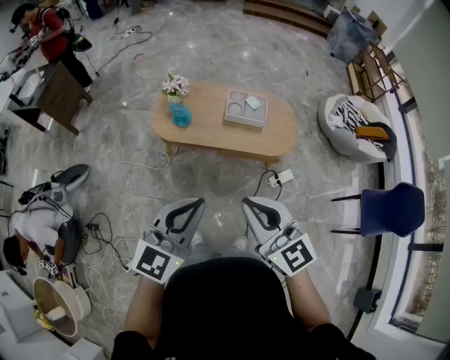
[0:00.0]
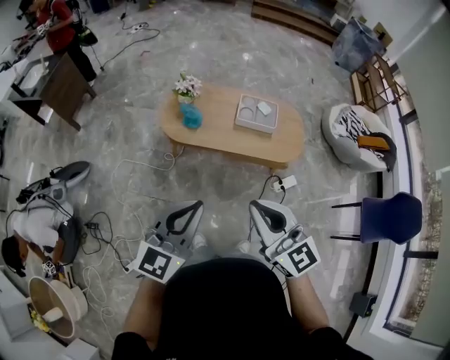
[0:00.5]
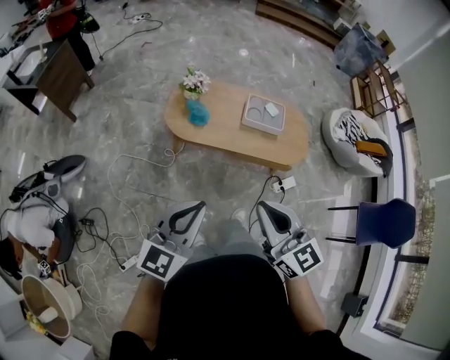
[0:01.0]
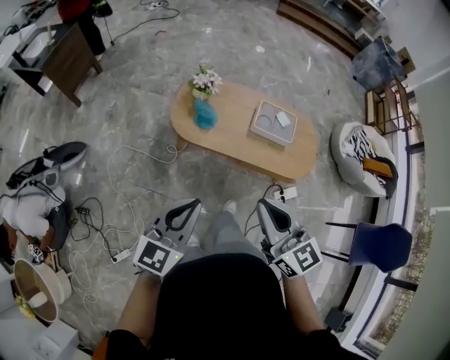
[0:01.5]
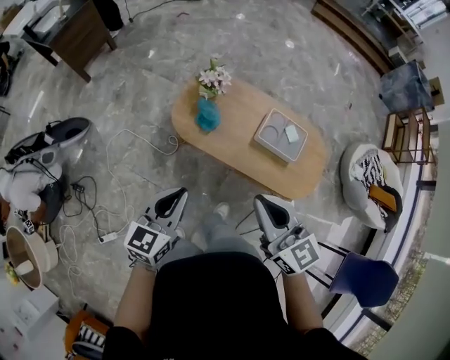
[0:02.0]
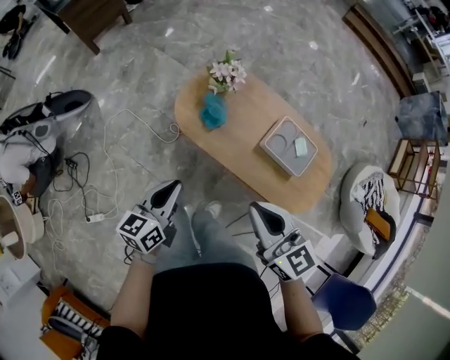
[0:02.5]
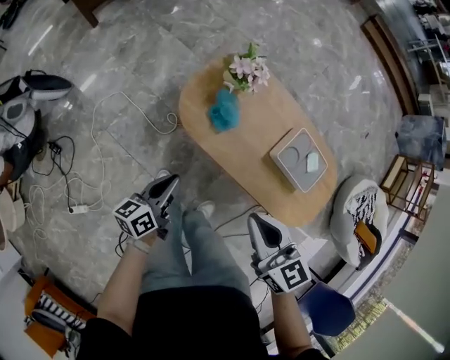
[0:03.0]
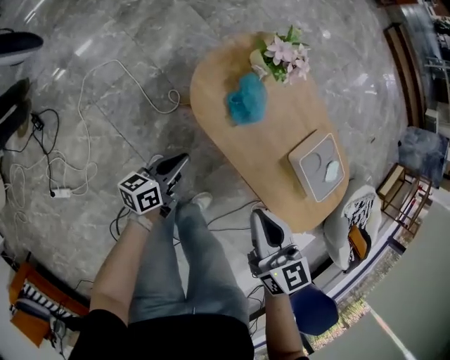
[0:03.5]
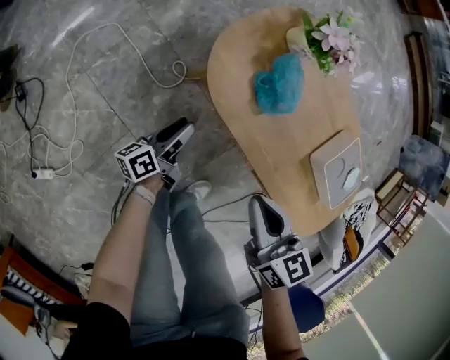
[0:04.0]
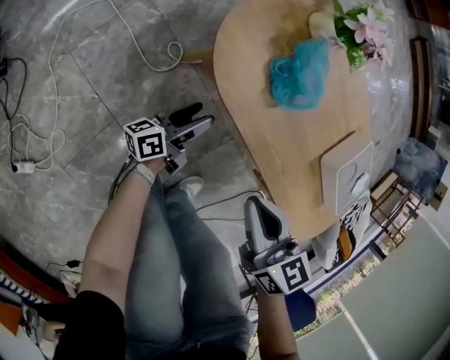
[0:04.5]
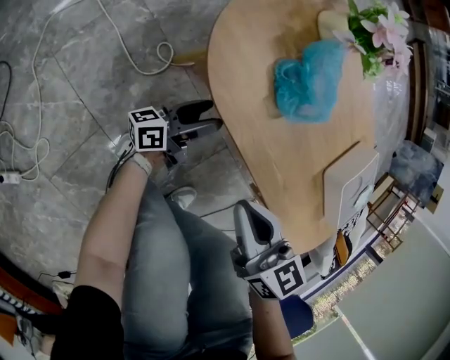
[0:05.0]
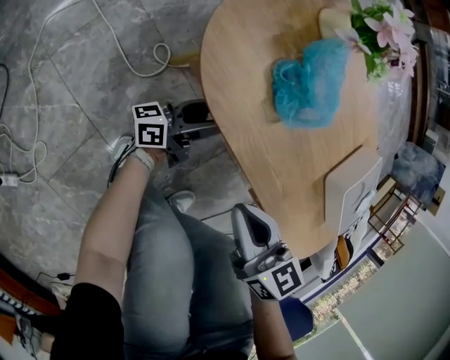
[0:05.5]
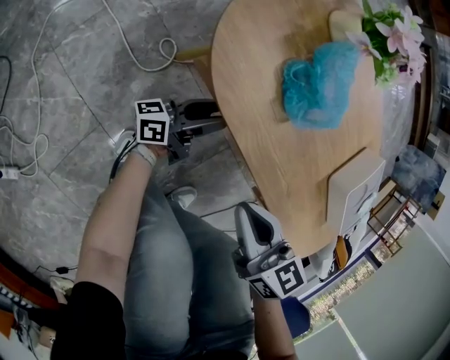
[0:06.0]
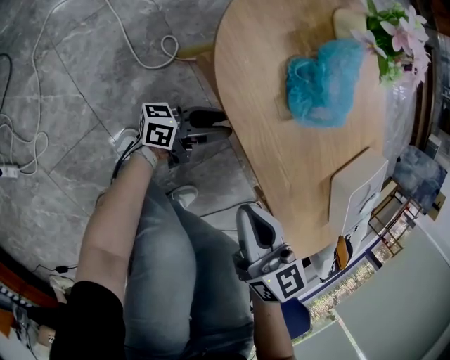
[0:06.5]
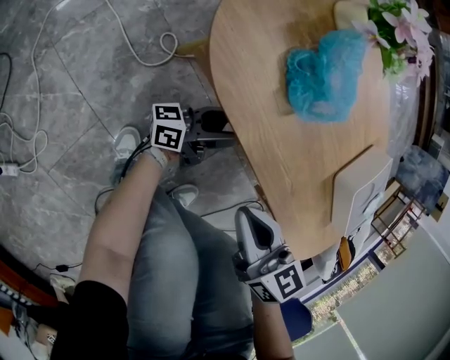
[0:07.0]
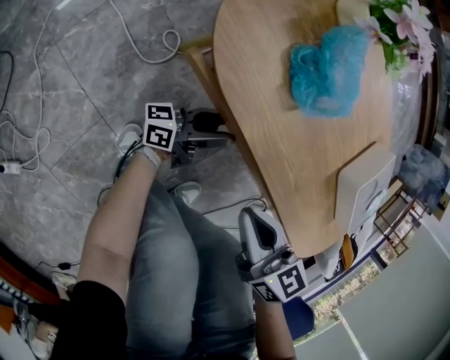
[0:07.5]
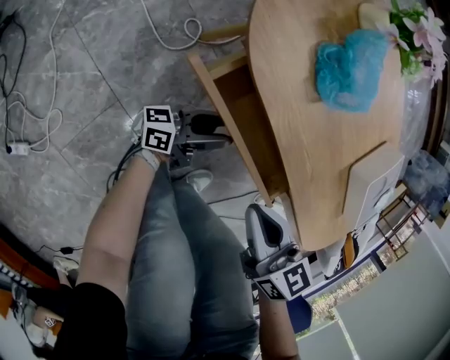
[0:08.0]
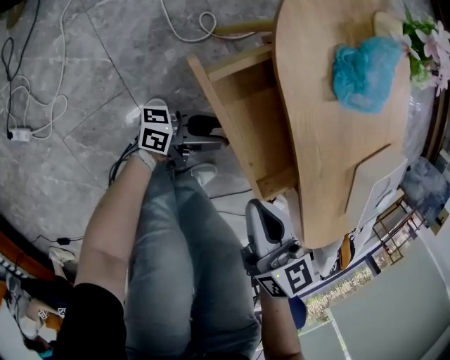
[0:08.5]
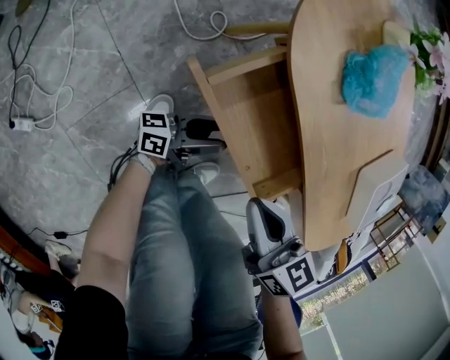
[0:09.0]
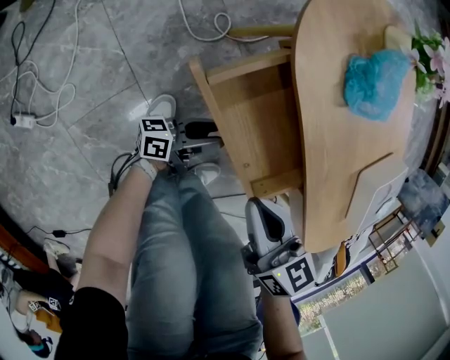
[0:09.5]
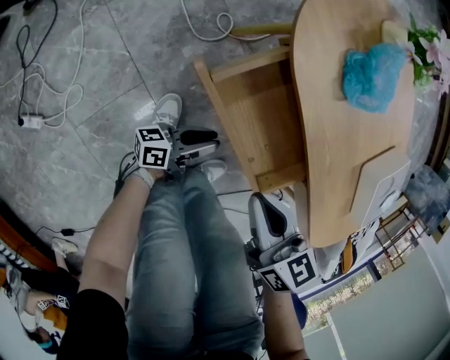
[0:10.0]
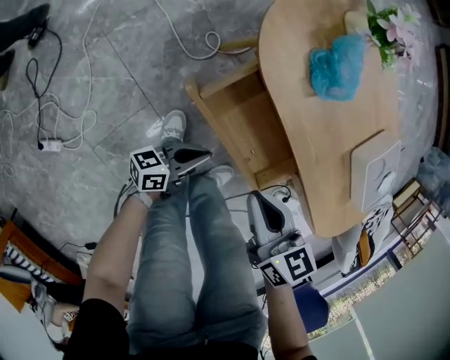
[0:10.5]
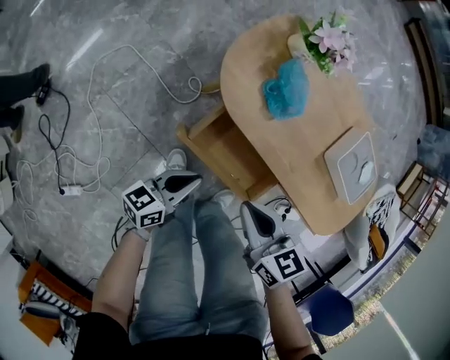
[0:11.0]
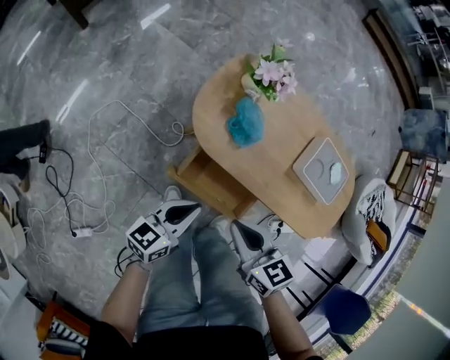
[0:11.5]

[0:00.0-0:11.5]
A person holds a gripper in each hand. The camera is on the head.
0:00.0 to 0:02.0: The right gripper goes some 30 cm forward. The left gripper is displaced forward, downward and to the left by approximately 35 cm, and swivels roughly 30 degrees.
0:02.0 to 0:04.0: The grippers both shift downward by about 50 cm. The left gripper twists some 60 degrees counterclockwise, seen from behind, and opens its fingers. The right gripper turns by about 30 degrees.
0:04.0 to 0:06.0: The left gripper goes roughly 15 cm downward and to the right, and turns by roughly 30 degrees; the right gripper shifts roughly 15 cm downward.
0:06.0 to 0:07.5: The left gripper moves some 5 cm.
0:07.5 to 0:09.5: The right gripper is displaced to the left and backward by roughly 10 cm; the left gripper shifts some 15 cm backward and to the left.
0:09.5 to 0:11.5: The left gripper moves upward, roughly 40 cm, swivels roughly 50 degrees, and closes. Meanwhile the right gripper moves upward, some 25 cm.

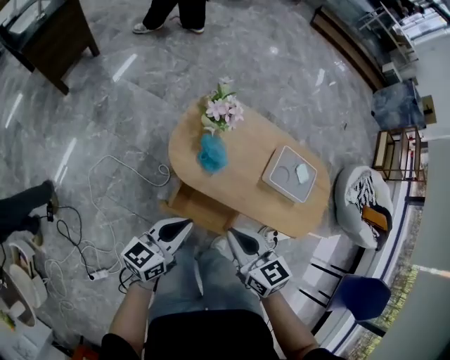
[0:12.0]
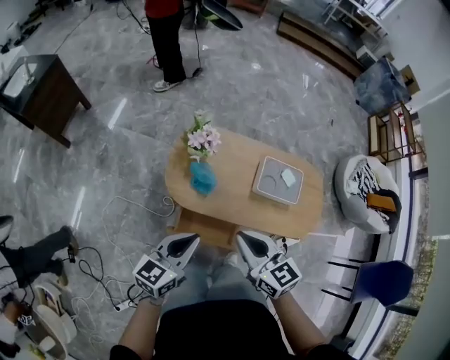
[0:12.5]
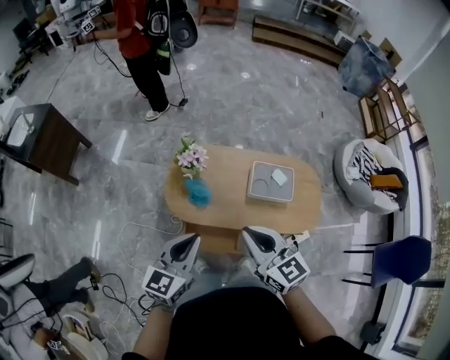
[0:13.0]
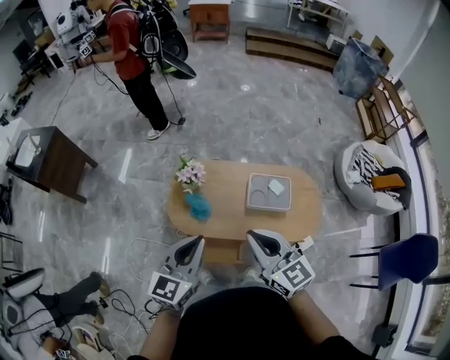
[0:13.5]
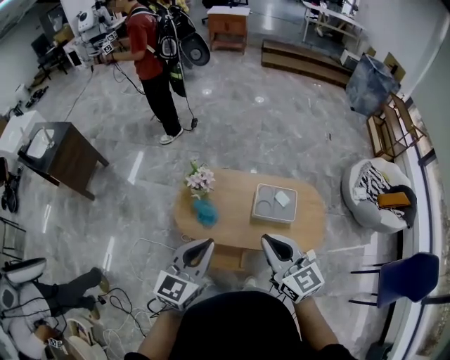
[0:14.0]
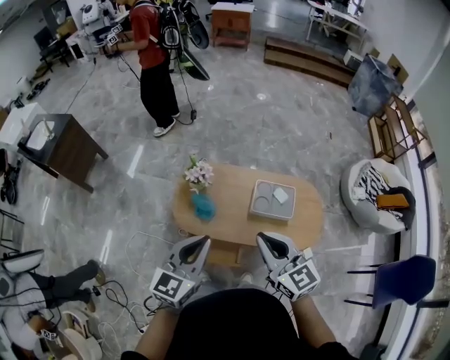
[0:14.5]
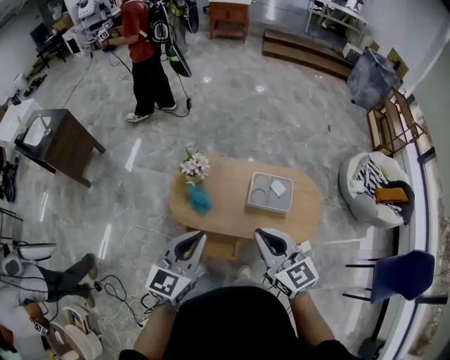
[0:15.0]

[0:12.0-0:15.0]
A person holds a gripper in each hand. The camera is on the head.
0:12.0 to 0:13.5: The grippers both shift upward and to the right by approximately 30 cm. The right gripper rotates roughly 30 degrees; the left gripper changes its angle by about 30 degrees.
0:13.5 to 0:15.0: The grippers stay close to where they were, moving slightly.

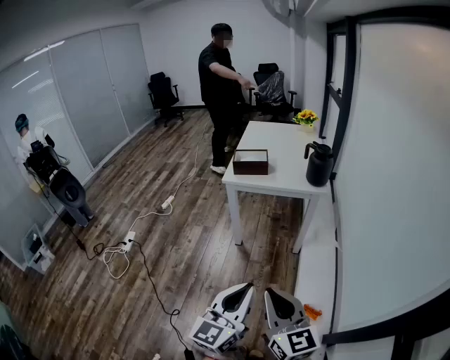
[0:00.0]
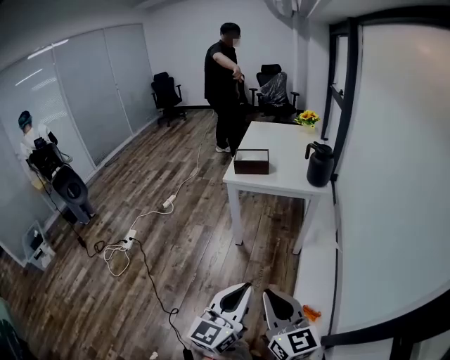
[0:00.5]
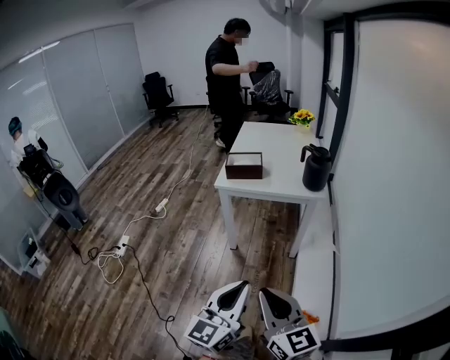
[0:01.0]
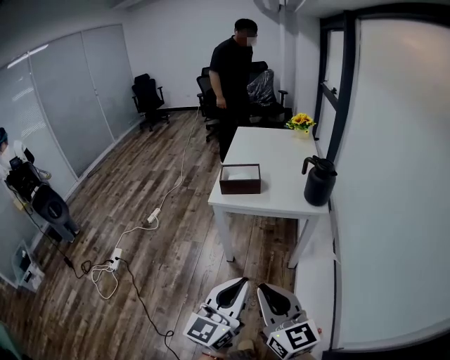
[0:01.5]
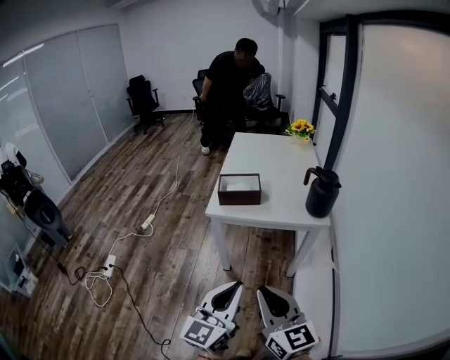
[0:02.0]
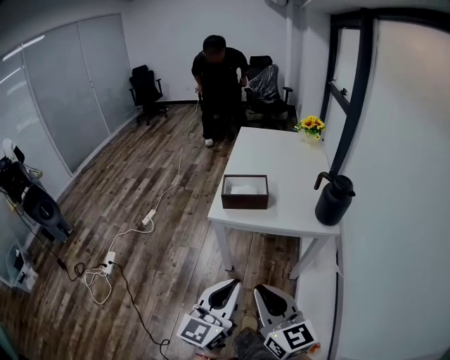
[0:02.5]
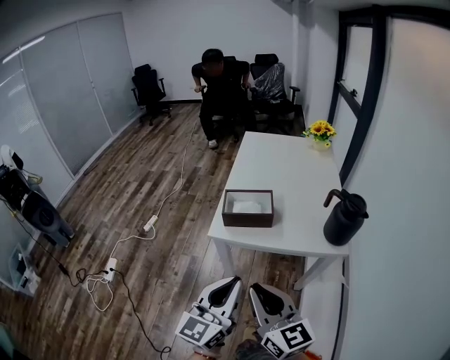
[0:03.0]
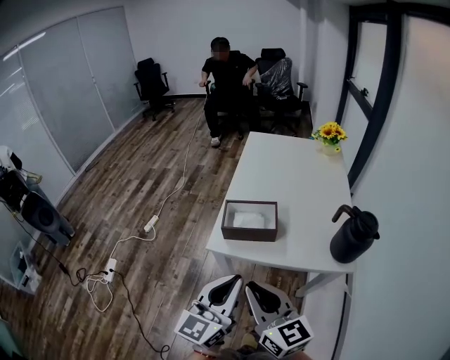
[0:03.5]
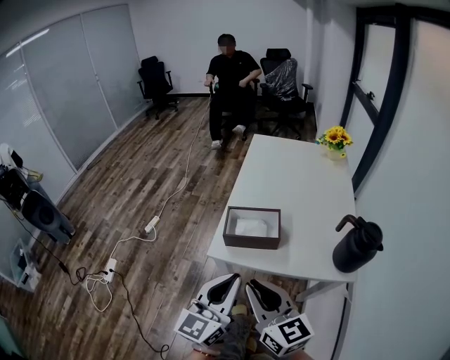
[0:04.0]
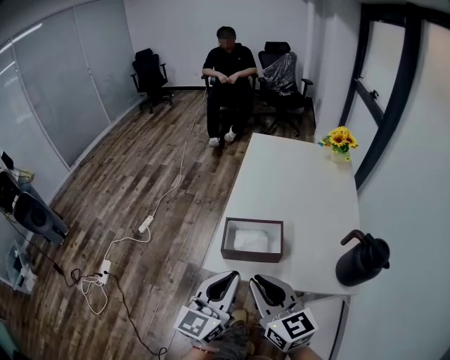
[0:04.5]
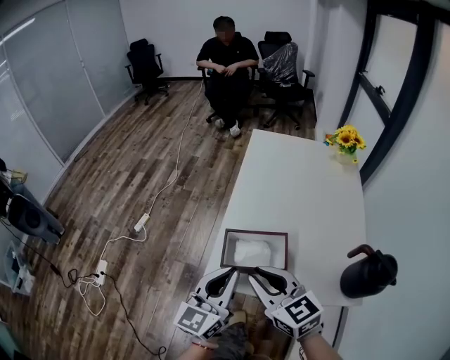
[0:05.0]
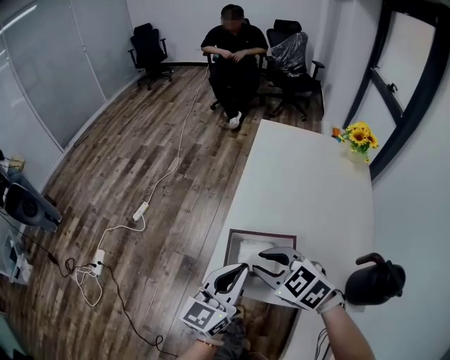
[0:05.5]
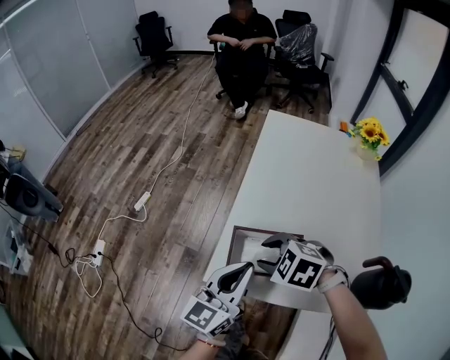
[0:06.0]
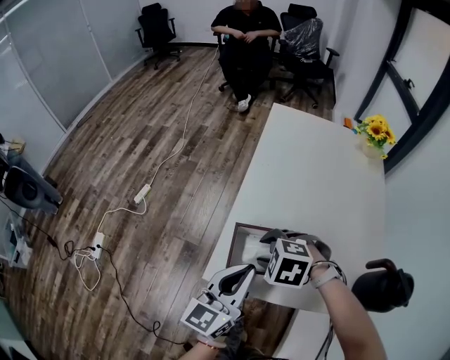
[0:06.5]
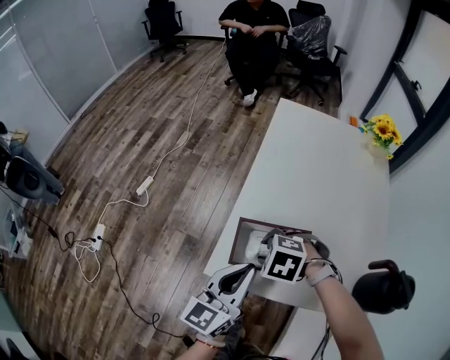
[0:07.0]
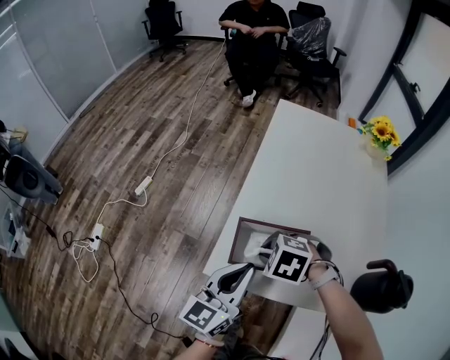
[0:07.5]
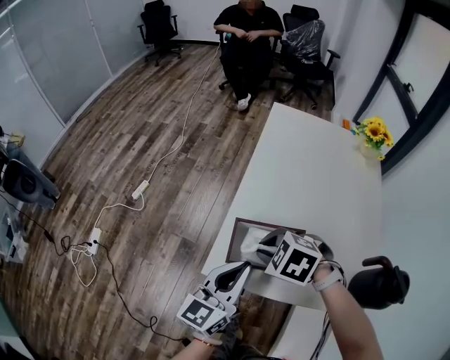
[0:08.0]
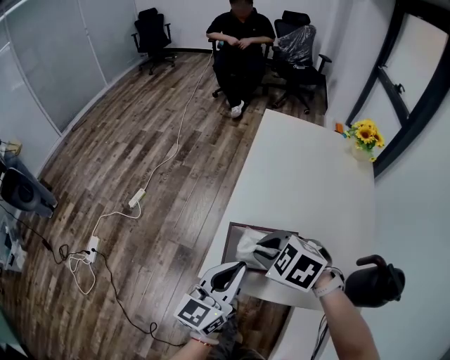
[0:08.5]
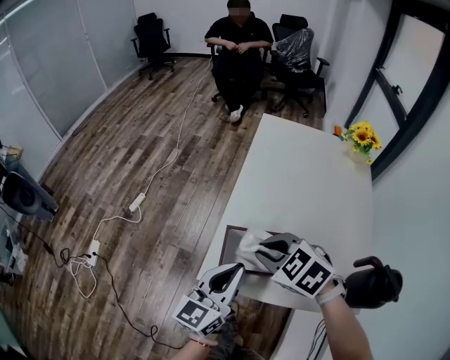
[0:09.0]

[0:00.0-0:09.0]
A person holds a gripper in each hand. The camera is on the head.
0:00.0 to 0:02.0: Both grippers move forward, roughly 25 cm.
0:02.0 to 0:04.5: The two grippers go approximately 40 cm forward.
0:04.5 to 0:07.0: The right gripper is displaced downward by roughly 20 cm, angles its fingers downward, by about 70 degrees, and opens its fingers; the left gripper moves approximately 15 cm.
0:07.0 to 0:09.0: The right gripper is displaced upward by approximately 10 cm, changes its angle by roughly 30 degrees, and closes up.

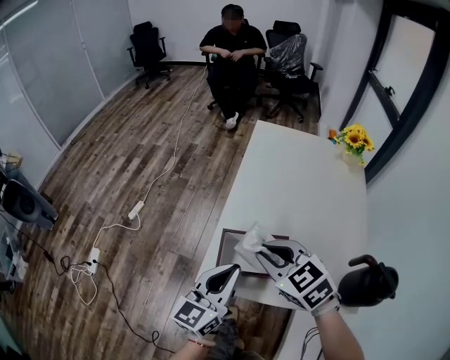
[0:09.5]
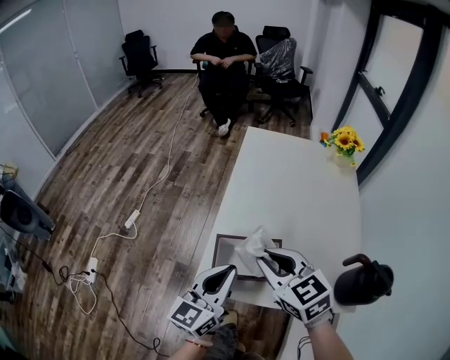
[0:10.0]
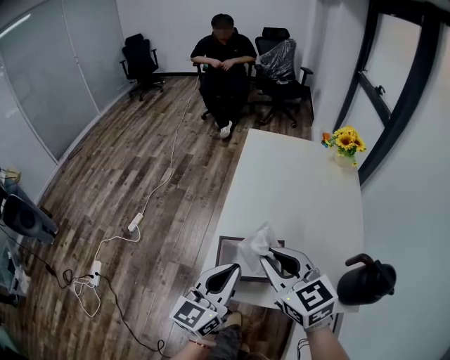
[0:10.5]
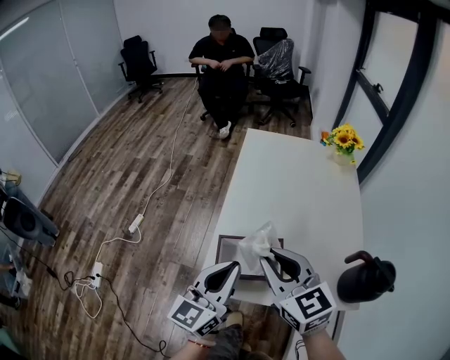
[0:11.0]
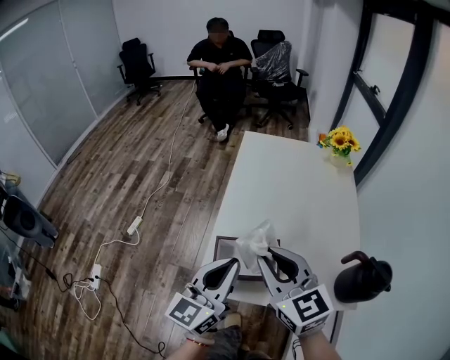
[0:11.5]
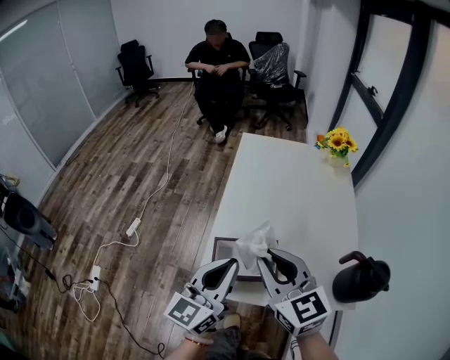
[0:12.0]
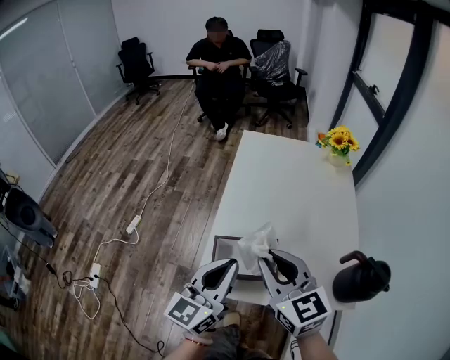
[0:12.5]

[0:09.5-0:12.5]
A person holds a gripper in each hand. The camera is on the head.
0:09.5 to 0:11.0: The right gripper travels upward by roughly 5 cm, and swivels approximately 30 degrees.
0:11.0 to 0:12.5: There are only small adjustments of the grippers.
